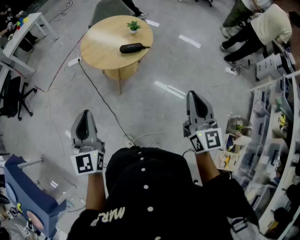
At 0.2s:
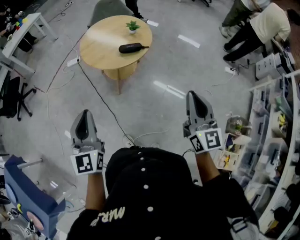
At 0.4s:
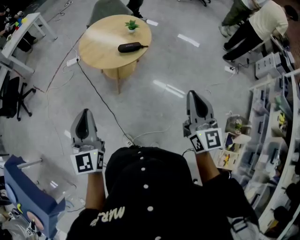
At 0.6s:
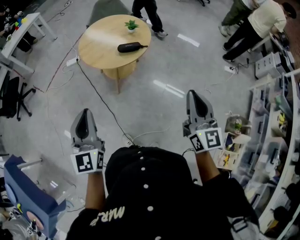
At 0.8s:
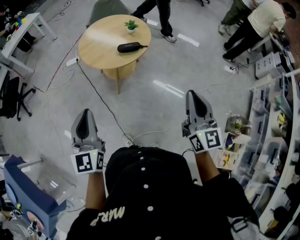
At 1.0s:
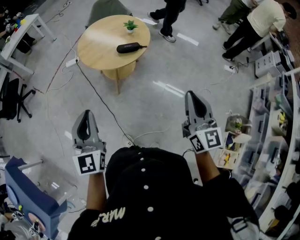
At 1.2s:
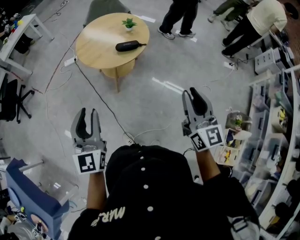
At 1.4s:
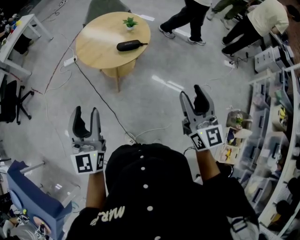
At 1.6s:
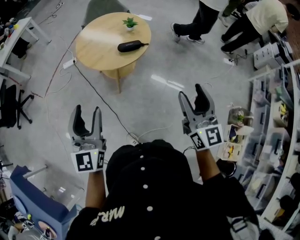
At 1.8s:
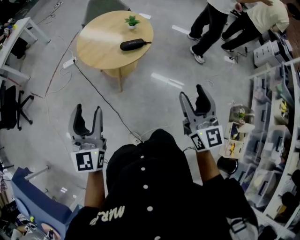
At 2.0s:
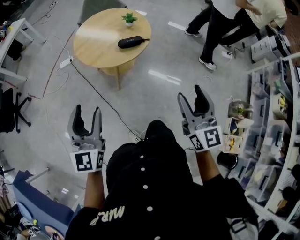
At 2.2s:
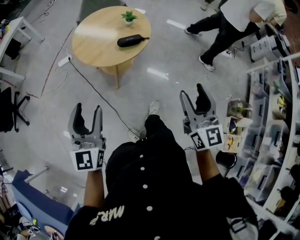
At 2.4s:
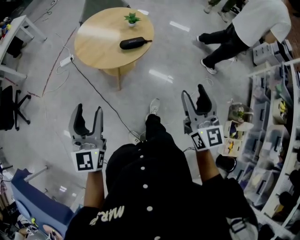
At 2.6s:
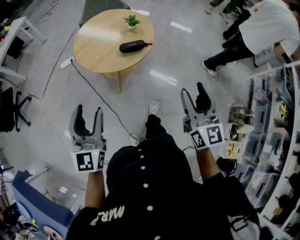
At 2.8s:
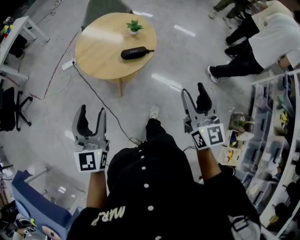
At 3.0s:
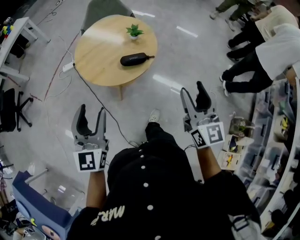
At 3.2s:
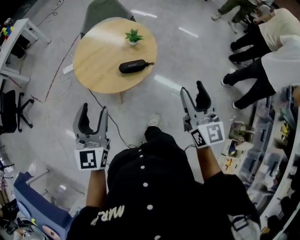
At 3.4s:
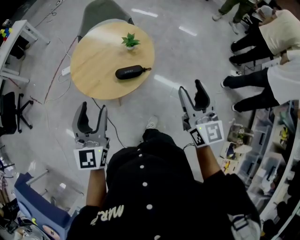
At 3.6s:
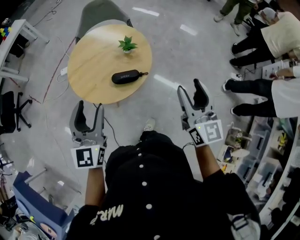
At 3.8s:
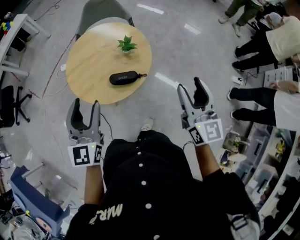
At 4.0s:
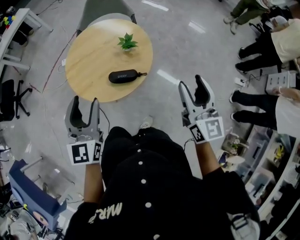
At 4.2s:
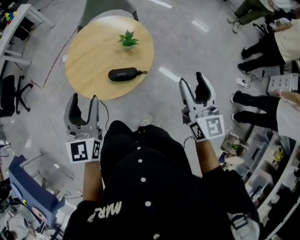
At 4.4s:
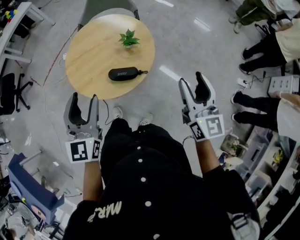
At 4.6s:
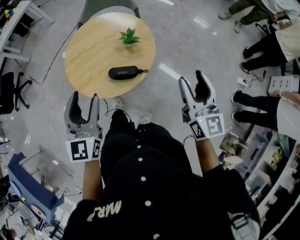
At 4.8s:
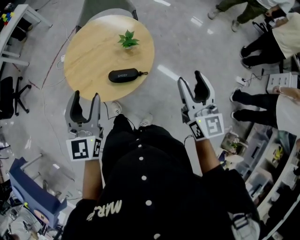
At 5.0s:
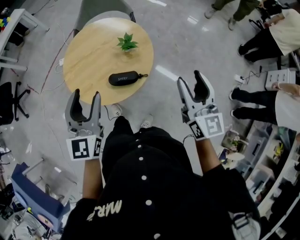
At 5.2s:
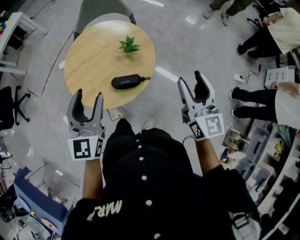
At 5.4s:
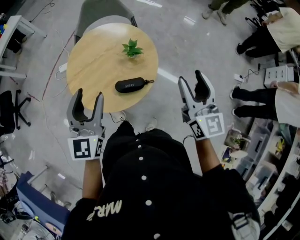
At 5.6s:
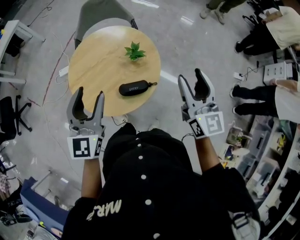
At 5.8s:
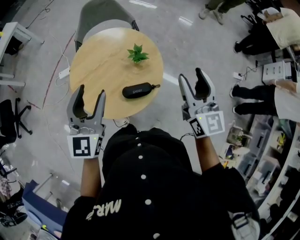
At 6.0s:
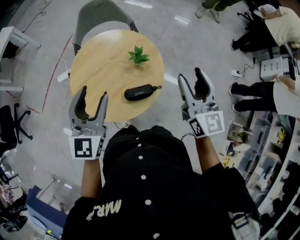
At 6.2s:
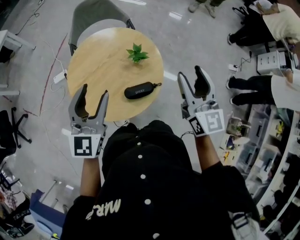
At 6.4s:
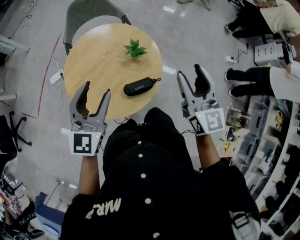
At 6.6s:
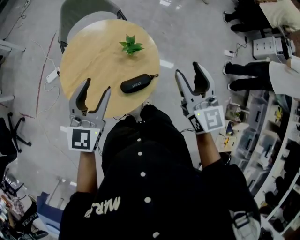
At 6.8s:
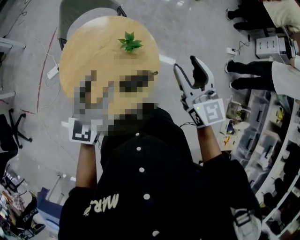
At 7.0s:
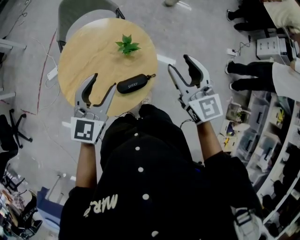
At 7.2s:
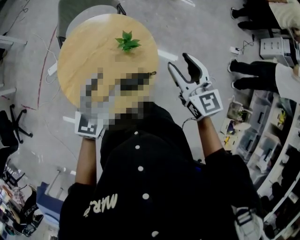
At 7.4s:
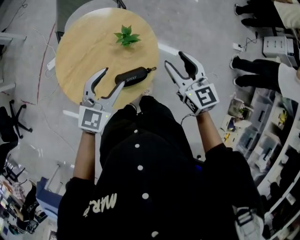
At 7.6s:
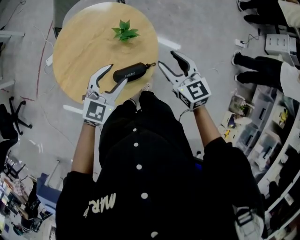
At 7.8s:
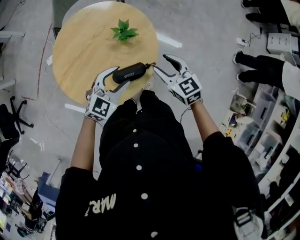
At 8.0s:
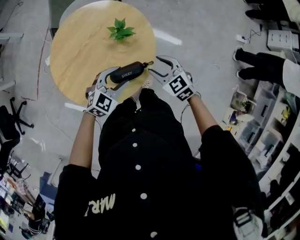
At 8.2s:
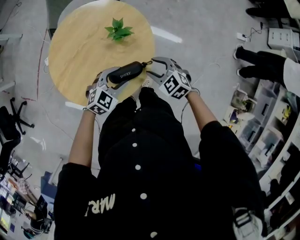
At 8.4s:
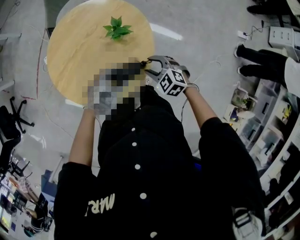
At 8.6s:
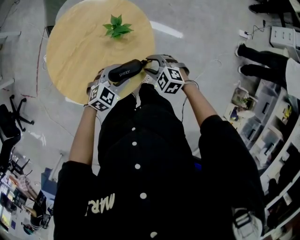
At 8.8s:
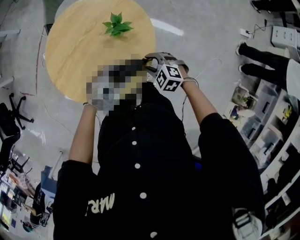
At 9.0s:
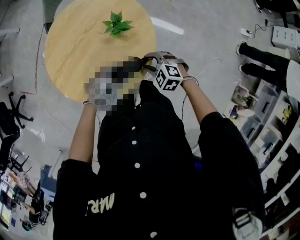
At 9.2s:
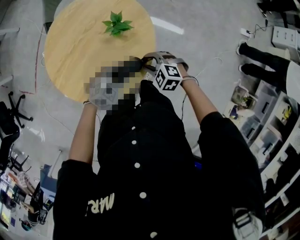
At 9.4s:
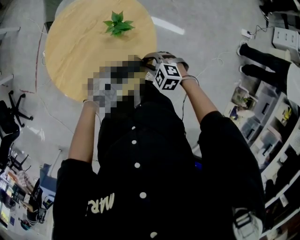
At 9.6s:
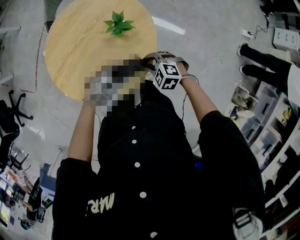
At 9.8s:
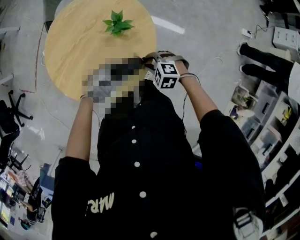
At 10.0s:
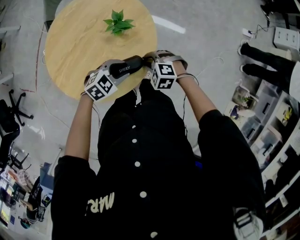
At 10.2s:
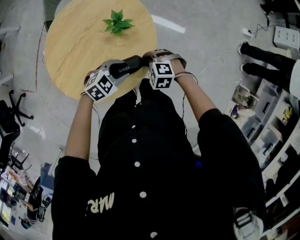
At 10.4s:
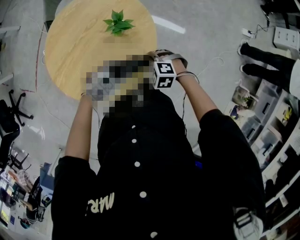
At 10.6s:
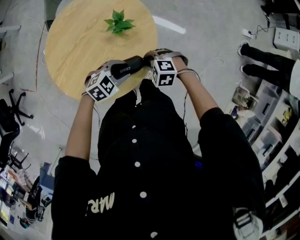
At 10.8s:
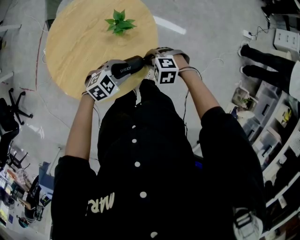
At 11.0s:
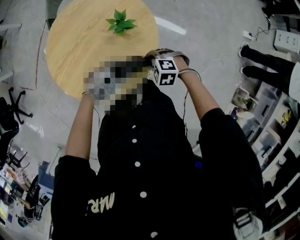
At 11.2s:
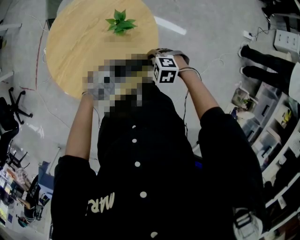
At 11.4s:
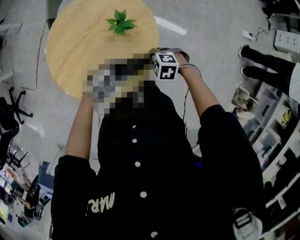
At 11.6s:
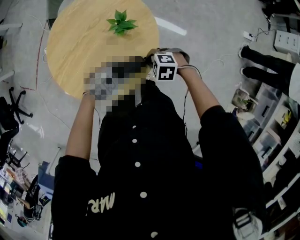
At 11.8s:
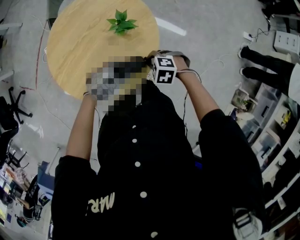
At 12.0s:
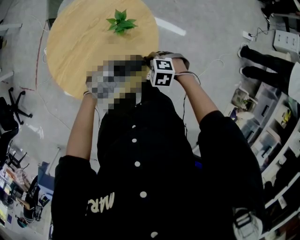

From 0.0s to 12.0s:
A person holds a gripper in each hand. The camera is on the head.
From 0.0s to 1.6s: The left gripper moves some 5 cm, and opens up, while the right gripper moves some 5 cm, and opens up.
From 1.6s to 3.0s: Both grippers move forward, approximately 15 cm.
From 3.0s to 4.4s: The grippers both shift forward and to the right by approximately 25 cm.
From 4.4s to 6.0s: The left gripper moves forward and to the left, approximately 15 cm, and swivels about 20 degrees. The right gripper goes some 15 cm to the left and forward.
From 6.0s to 7.6s: The right gripper shifts roughly 20 cm downward, and swivels roughly 30 degrees; the left gripper travels downward and to the right by approximately 20 cm, and turns by some 40 degrees.
From 7.6s to 9.0s: The grippers both shift downward by roughly 20 cm. The right gripper tips its fingers downward by some 30 degrees; the left gripper rotates some 30 degrees.
From 9.0s to 12.0s: There are only small adjustments of the grippers.

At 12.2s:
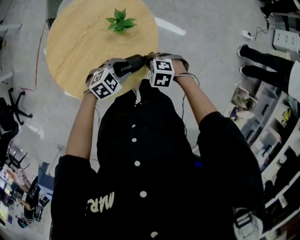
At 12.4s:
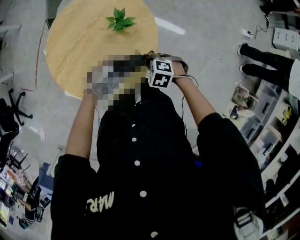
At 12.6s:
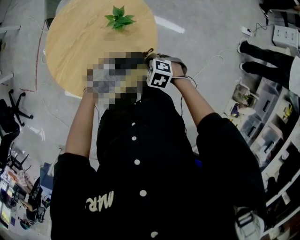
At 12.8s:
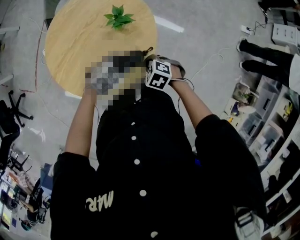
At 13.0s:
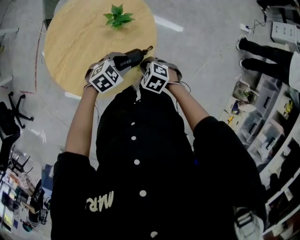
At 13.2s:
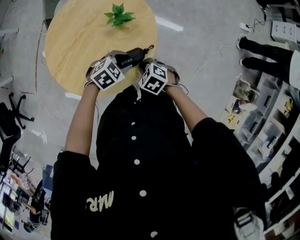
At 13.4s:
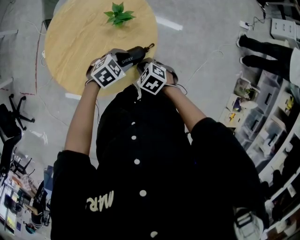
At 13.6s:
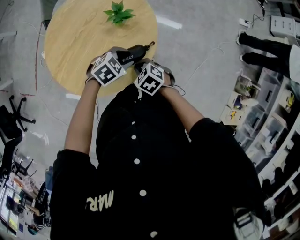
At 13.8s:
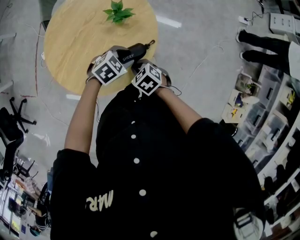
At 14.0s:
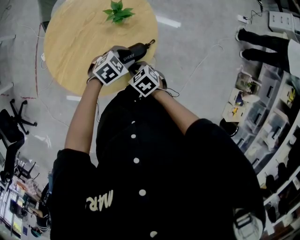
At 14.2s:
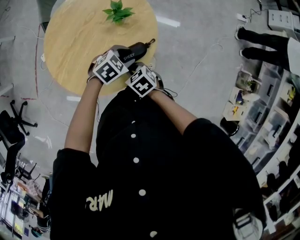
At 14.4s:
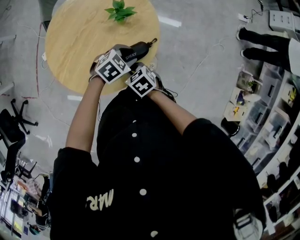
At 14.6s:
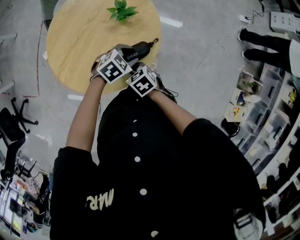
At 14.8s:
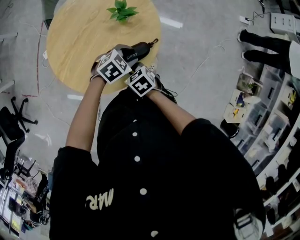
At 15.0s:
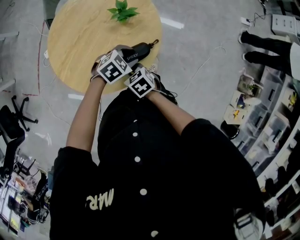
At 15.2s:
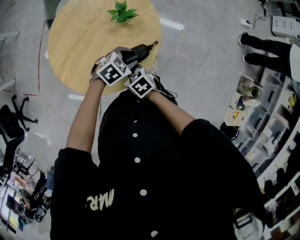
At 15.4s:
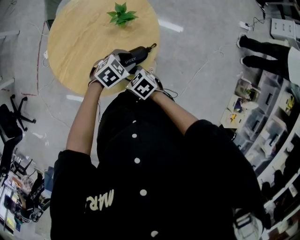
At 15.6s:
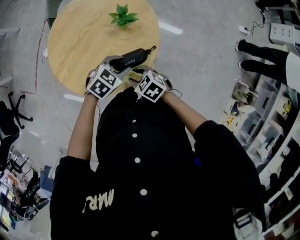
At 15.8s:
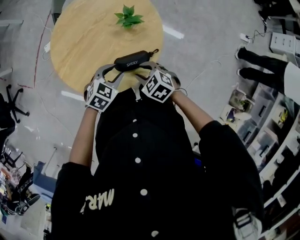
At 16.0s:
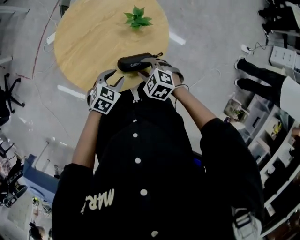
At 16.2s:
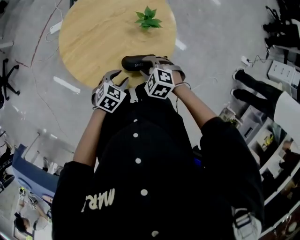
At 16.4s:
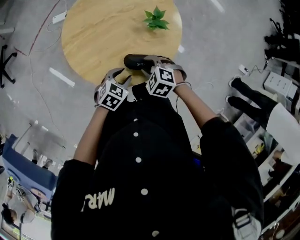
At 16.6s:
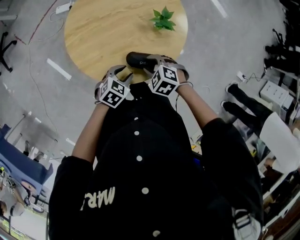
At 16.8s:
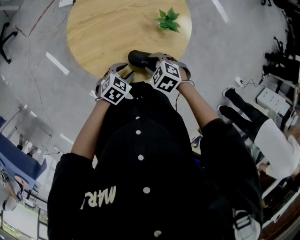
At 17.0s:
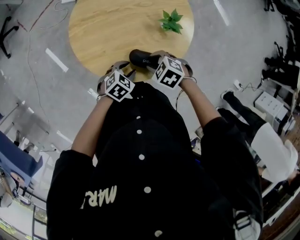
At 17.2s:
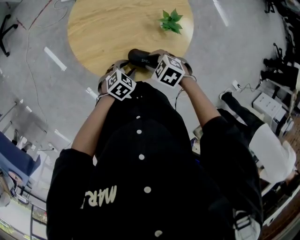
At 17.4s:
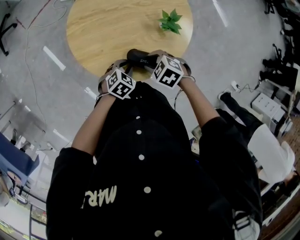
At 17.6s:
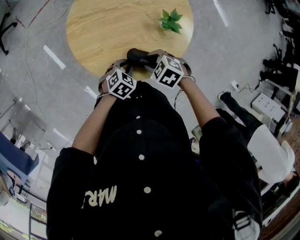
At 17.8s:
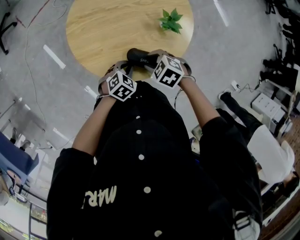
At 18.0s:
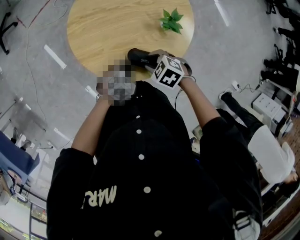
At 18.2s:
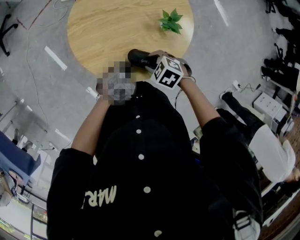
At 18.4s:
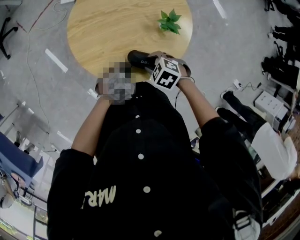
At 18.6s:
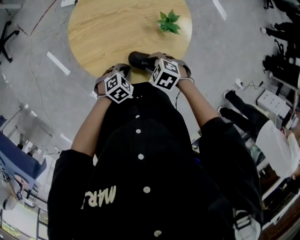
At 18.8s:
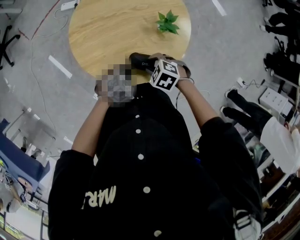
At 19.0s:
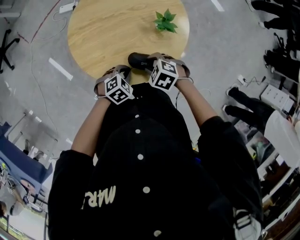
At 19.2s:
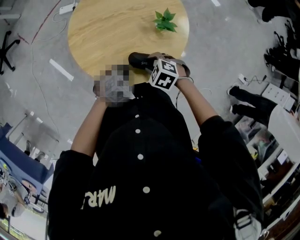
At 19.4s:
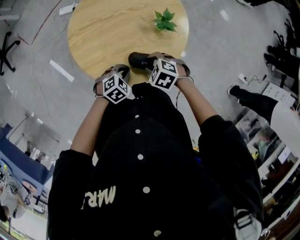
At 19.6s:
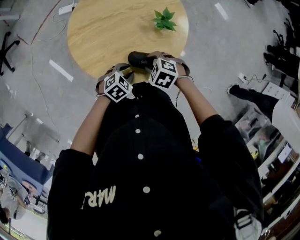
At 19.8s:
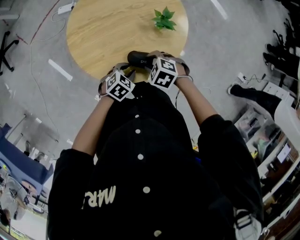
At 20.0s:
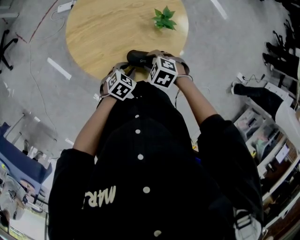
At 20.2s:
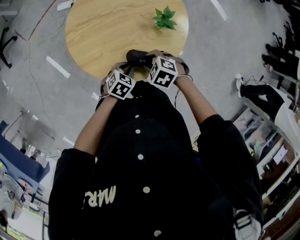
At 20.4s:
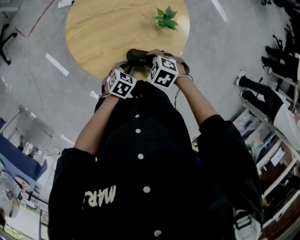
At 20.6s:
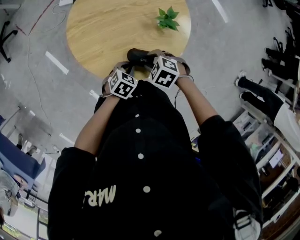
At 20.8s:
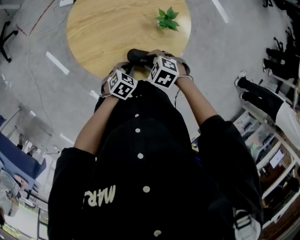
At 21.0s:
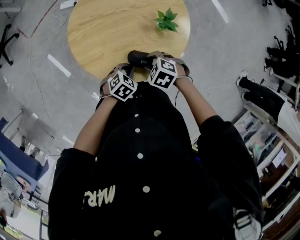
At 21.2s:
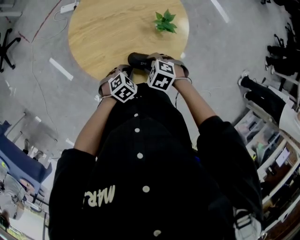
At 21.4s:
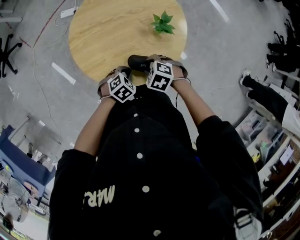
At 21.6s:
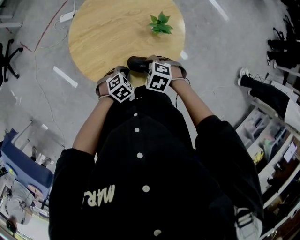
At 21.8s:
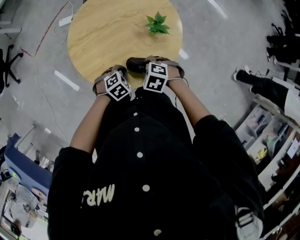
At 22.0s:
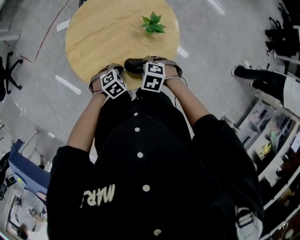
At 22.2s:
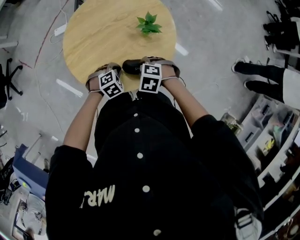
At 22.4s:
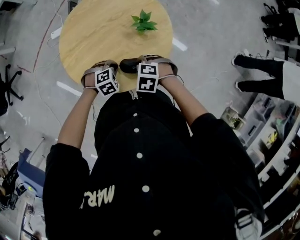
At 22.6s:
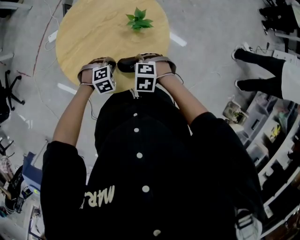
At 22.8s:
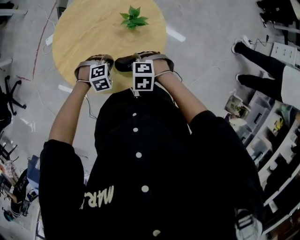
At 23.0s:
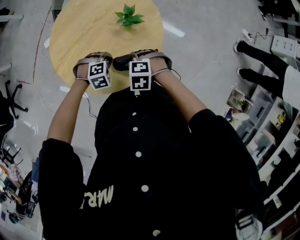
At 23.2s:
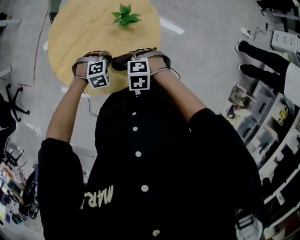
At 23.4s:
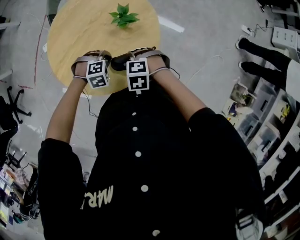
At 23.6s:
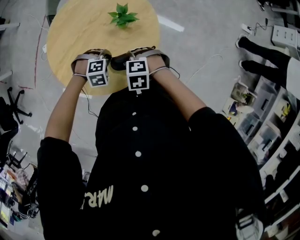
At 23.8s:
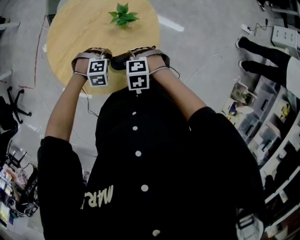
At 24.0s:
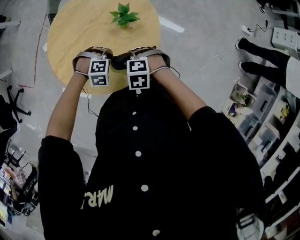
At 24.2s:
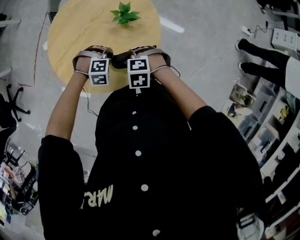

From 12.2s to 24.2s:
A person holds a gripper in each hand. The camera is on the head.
From 12.2s to 13.8s: The right gripper shifts by roughly 10 cm, and rotates some 40 degrees.
From 13.8s to 15.2s: The right gripper changes place by some 5 cm.
From 15.2s to 16.6s: The right gripper shifts by approximately 5 cm, rolls counterclockwise, seen from behind, by some 60 degrees, and opens its fingers; the left gripper changes place by approximately 10 cm, and swivels approximately 40 degrees.
From 16.6s to 18.2s: The left gripper closes up.
From 18.2s to 19.8s: The left gripper opens up.
From 19.8s to 21.2s: The left gripper closes.
From 21.2s to 22.6s: The left gripper shifts by some 5 cm, and rotates around the line of its fingers by about 40 degrees, clockwise from behind.
From 22.6s to 24.2s: The left gripper turns by some 30 degrees.
